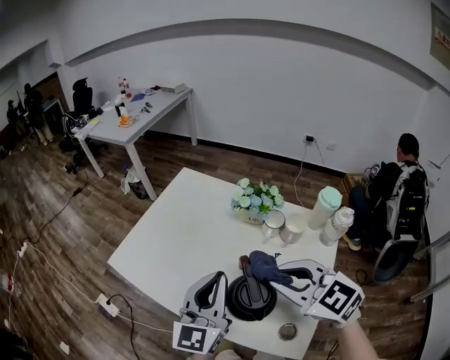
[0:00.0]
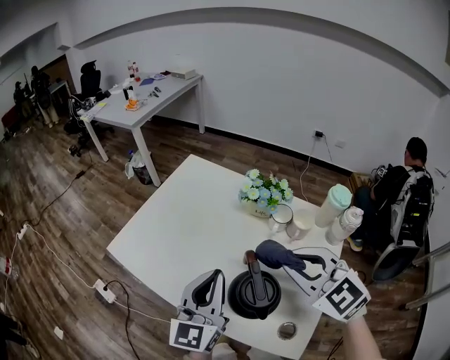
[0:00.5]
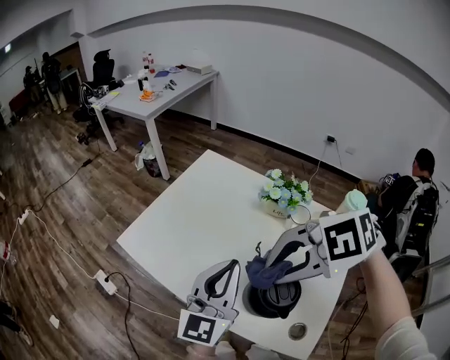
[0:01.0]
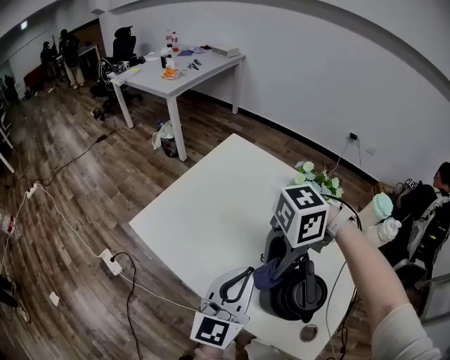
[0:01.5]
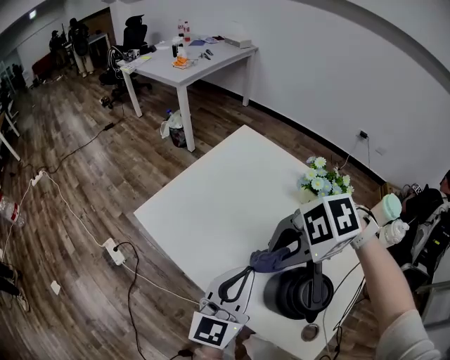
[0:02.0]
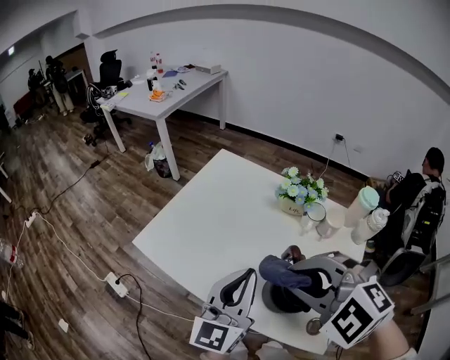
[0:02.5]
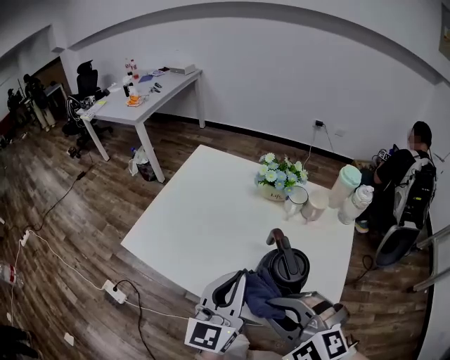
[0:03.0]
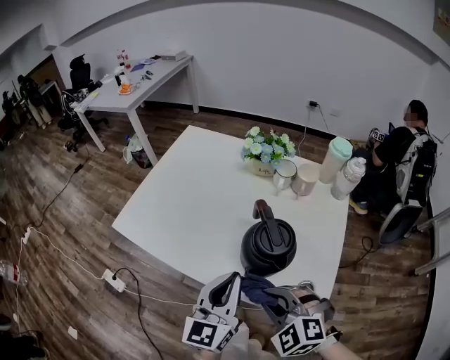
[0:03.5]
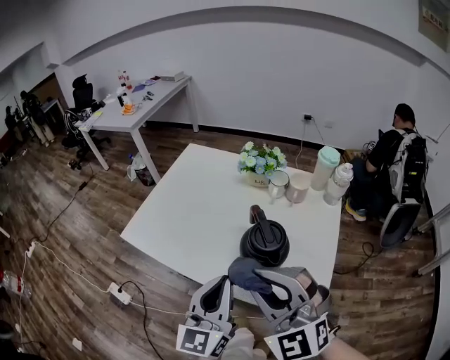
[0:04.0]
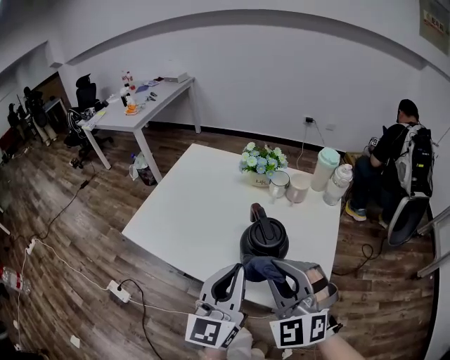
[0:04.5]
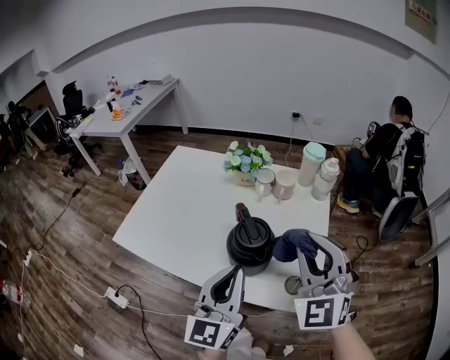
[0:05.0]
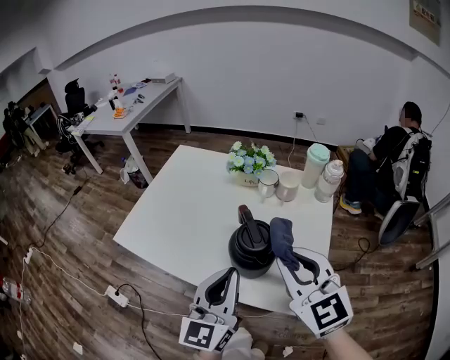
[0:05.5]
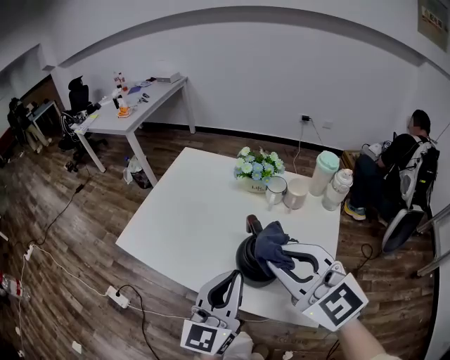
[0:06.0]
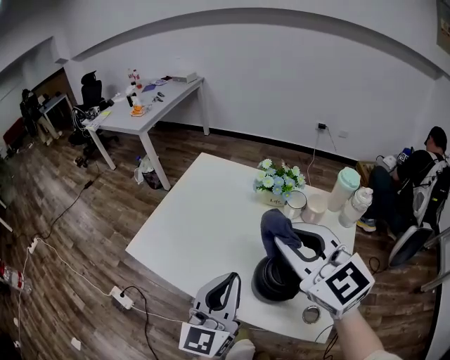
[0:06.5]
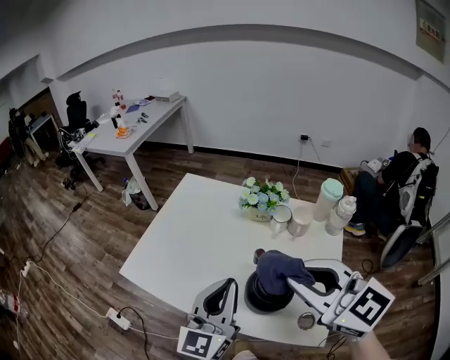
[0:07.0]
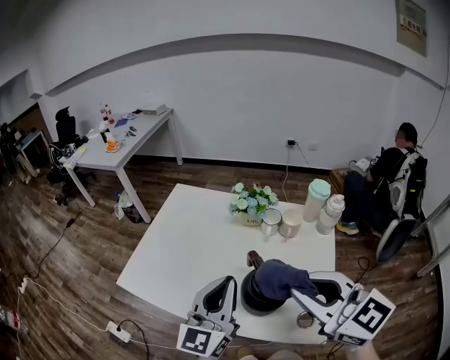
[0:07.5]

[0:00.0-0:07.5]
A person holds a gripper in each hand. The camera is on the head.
0.0 to 2.0 s: The right gripper changes place by some 15 cm, and points its fingers approximately 30 degrees further downward; the left gripper heads downward, covering some 10 cm.
2.0 to 4.0 s: The right gripper moves up and down over about 20 cm, changing direction 2 times, and angles its fingers upward, by about 50 degrees; the left gripper moves up and down over some 10 cm, changing direction 2 times.
4.0 to 5.5 s: The right gripper is displaced to the right by some 10 cm, and turns by about 30 degrees.
5.5 to 7.5 s: The right gripper moves upward, about 5 cm, and moves some 10 cm forward and comes back, while the left gripper goes some 10 cm forward.

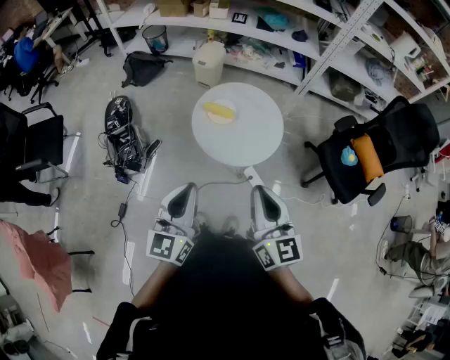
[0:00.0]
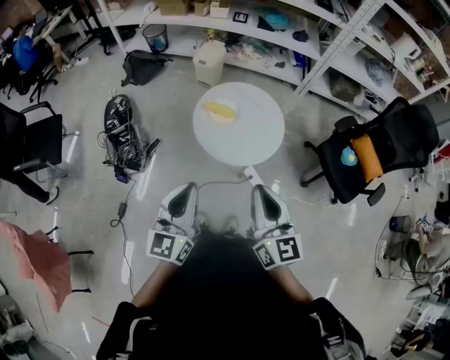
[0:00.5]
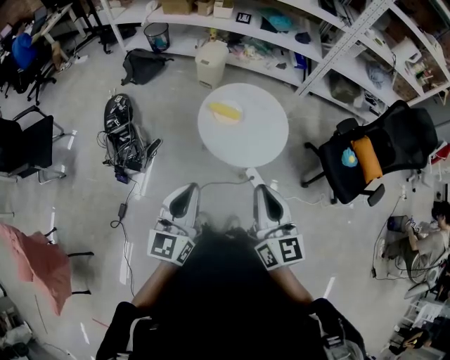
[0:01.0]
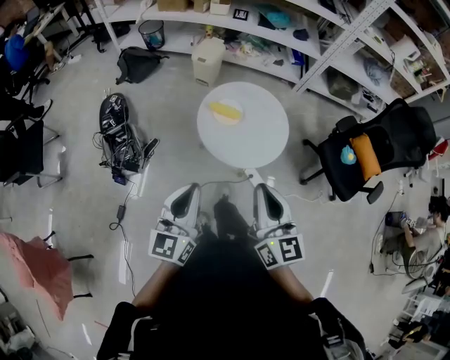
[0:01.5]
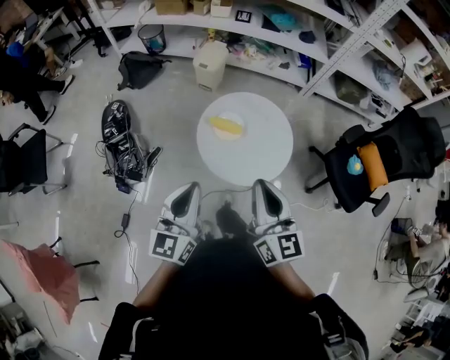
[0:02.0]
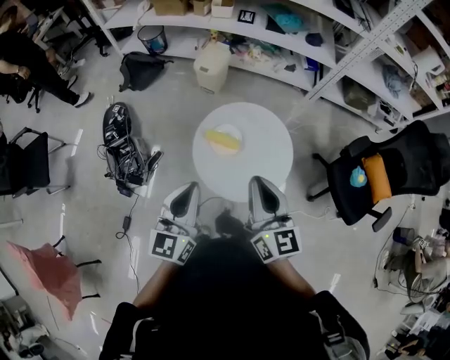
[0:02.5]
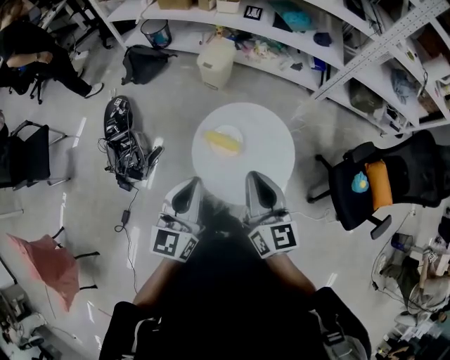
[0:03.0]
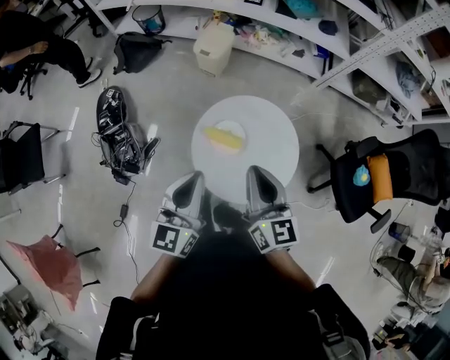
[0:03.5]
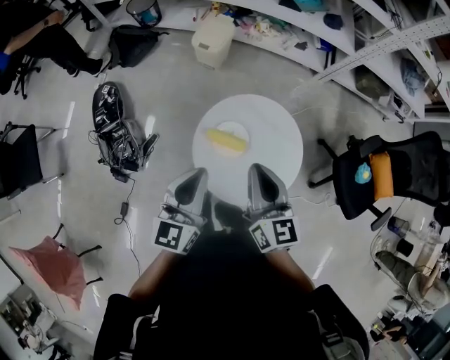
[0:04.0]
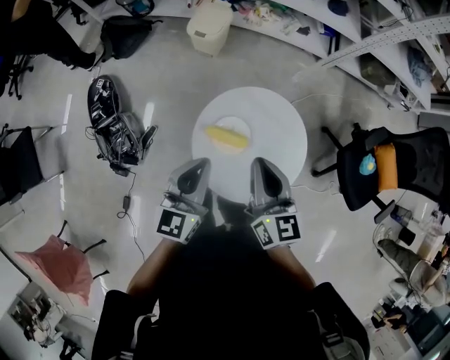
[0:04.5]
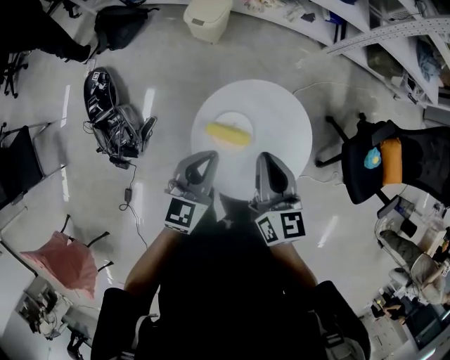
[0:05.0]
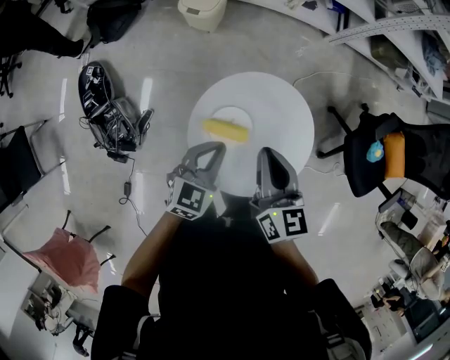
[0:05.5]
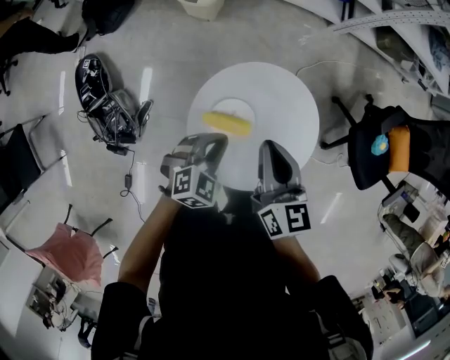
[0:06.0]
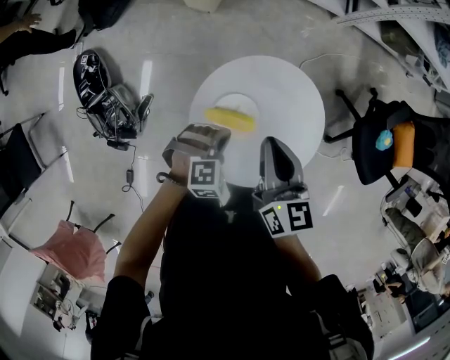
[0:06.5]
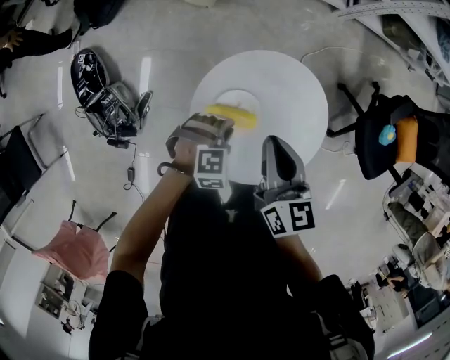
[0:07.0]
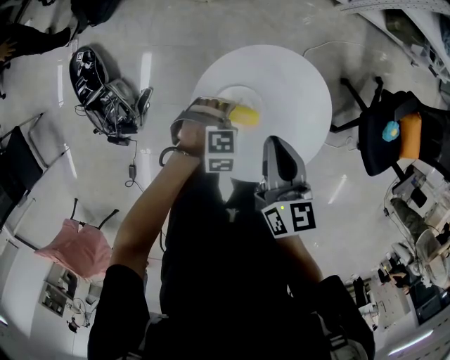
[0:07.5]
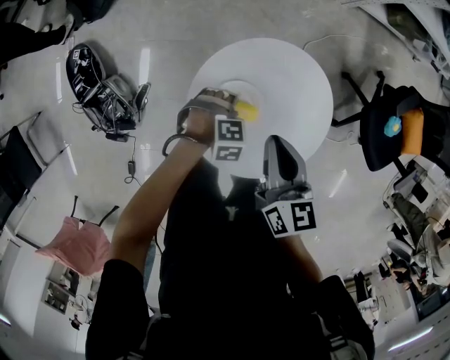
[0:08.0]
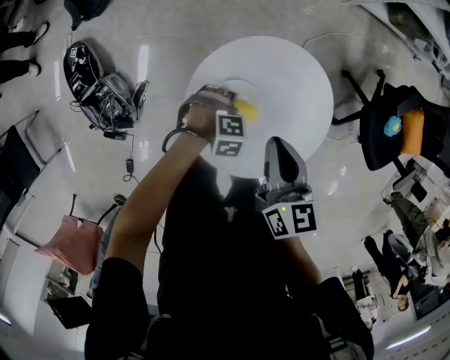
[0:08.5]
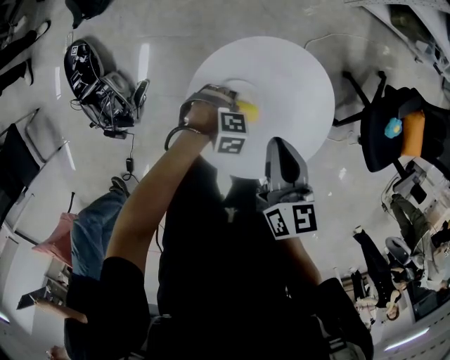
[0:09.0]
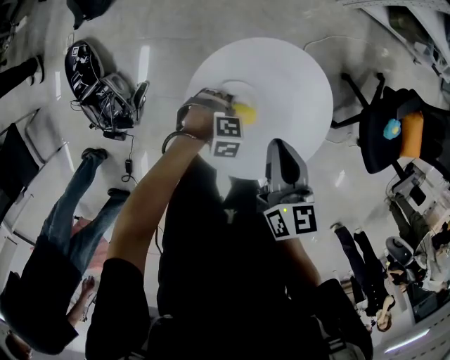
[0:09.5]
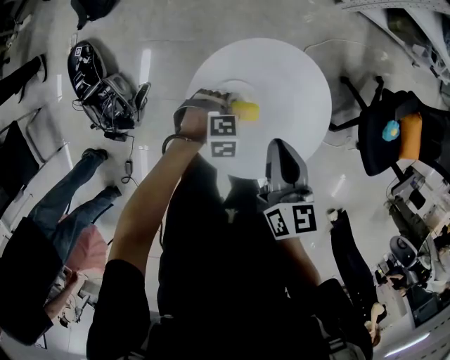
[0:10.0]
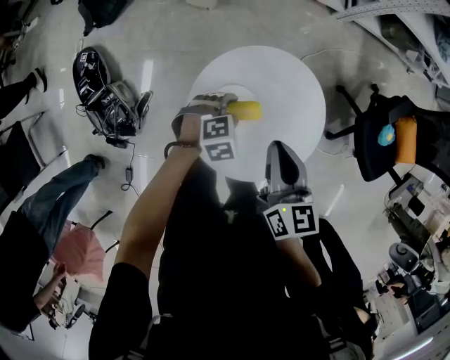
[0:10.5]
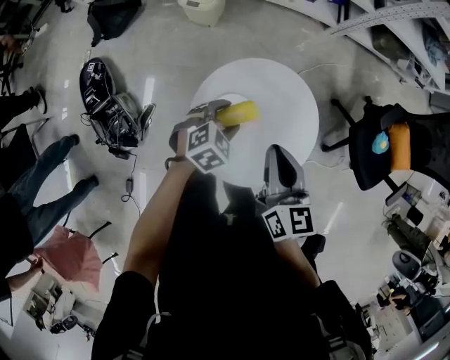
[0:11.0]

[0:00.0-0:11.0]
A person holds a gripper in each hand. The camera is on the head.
0.0 to 2.0 s: Both grippers move forward, about 15 cm.
2.0 to 3.5 s: Both grippers travel together forward, approximately 20 cm.
3.5 to 5.5 s: The left gripper travels downward and forward by roughly 20 cm, and turns by roughly 40 degrees. The right gripper is displaced forward and downward by approximately 15 cm.
5.5 to 7.5 s: The right gripper travels downward by roughly 5 cm. Meanwhile the left gripper moves downward, roughly 15 cm, angles its fingers downward, by roughly 40 degrees, and opens.
7.5 to 9.0 s: The left gripper moves downward, approximately 5 cm.
9.0 to 11.0 s: The left gripper shifts some 15 cm upward, and rotates approximately 50 degrees; the right gripper goes about 5 cm upward.

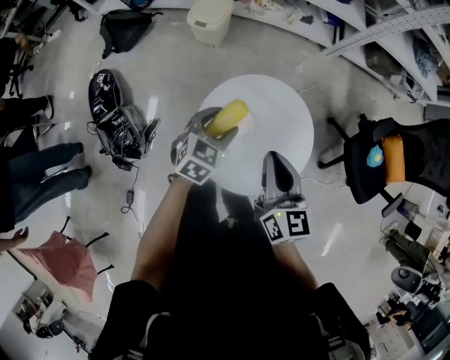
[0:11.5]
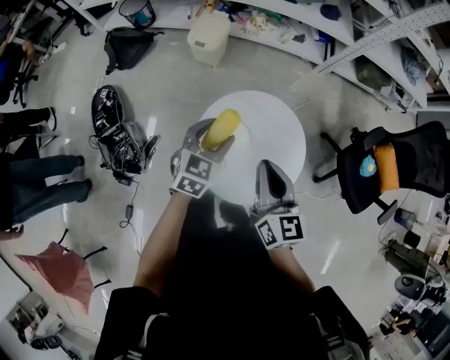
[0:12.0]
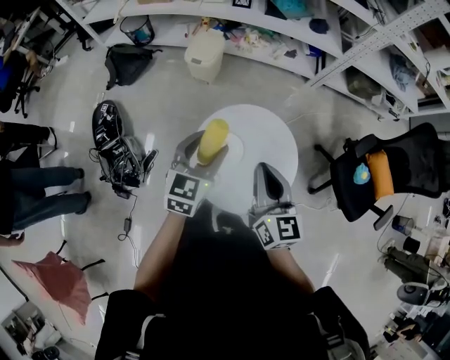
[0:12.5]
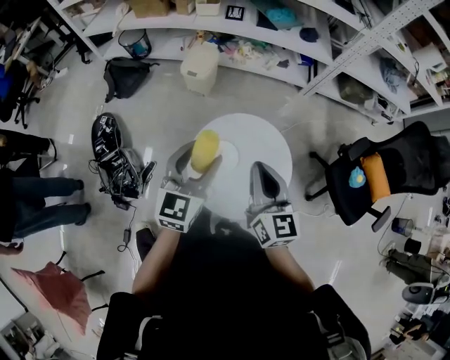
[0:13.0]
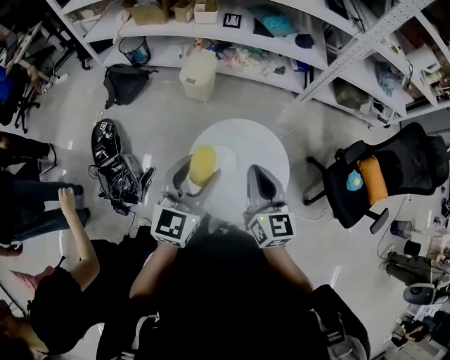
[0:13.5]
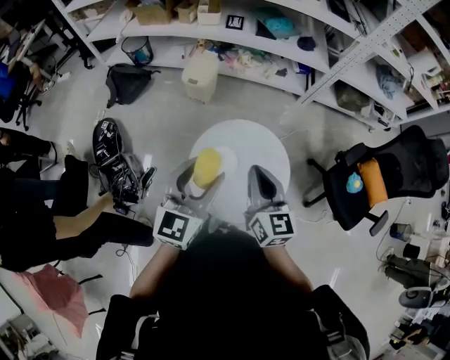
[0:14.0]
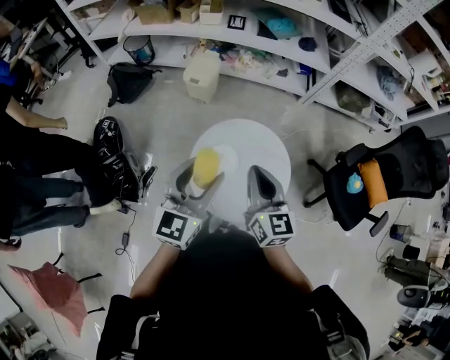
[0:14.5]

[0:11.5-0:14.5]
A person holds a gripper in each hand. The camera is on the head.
11.5 to 13.0 s: The left gripper is displaced upward by about 20 cm, and turns by about 30 degrees; the right gripper travels upward by about 10 cm.
13.0 to 14.5 s: The left gripper shifts by about 5 cm.

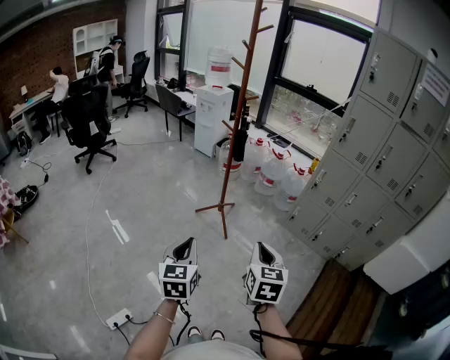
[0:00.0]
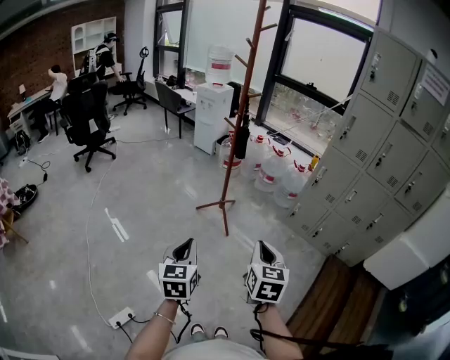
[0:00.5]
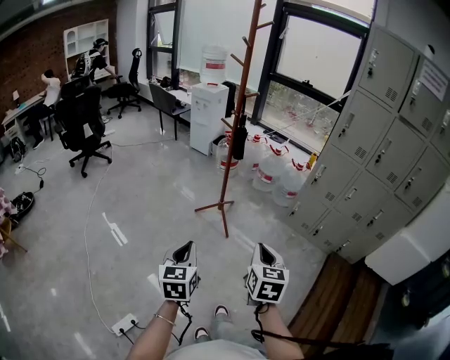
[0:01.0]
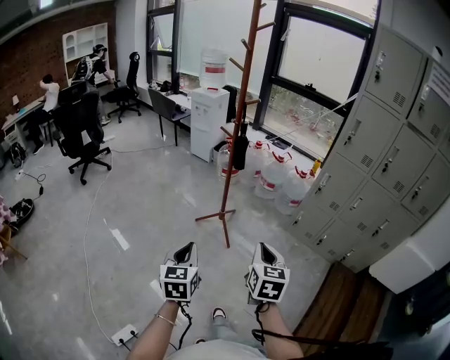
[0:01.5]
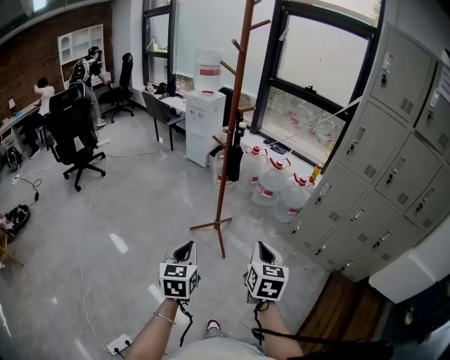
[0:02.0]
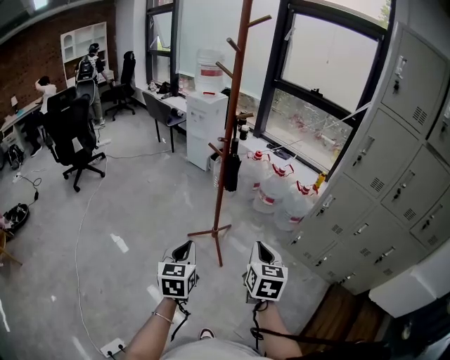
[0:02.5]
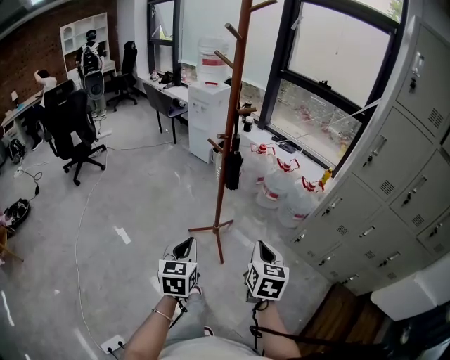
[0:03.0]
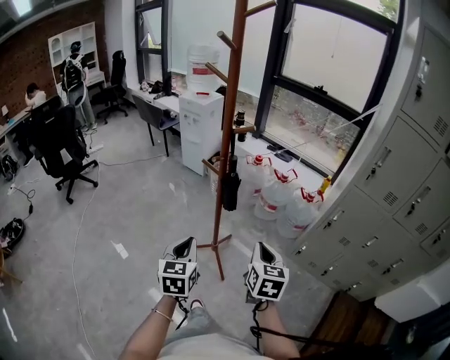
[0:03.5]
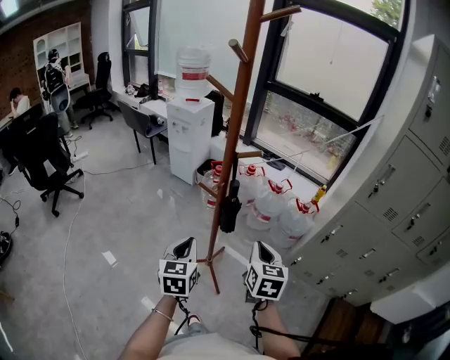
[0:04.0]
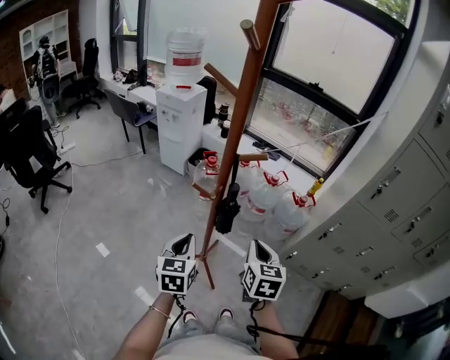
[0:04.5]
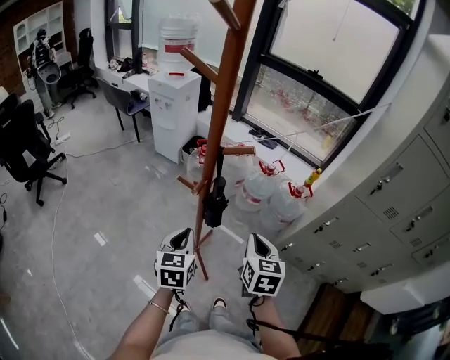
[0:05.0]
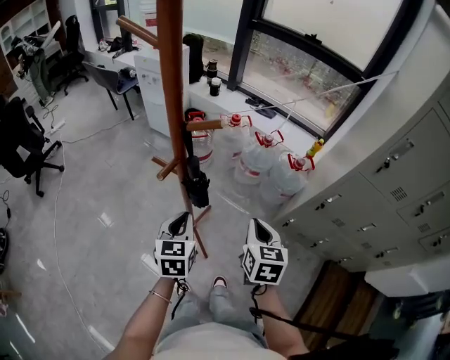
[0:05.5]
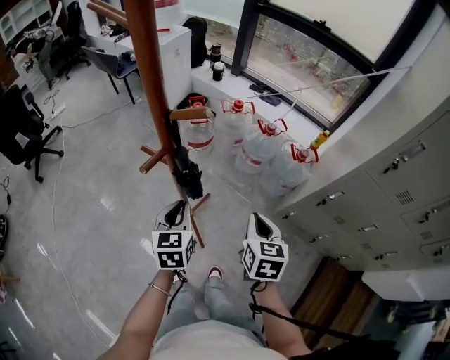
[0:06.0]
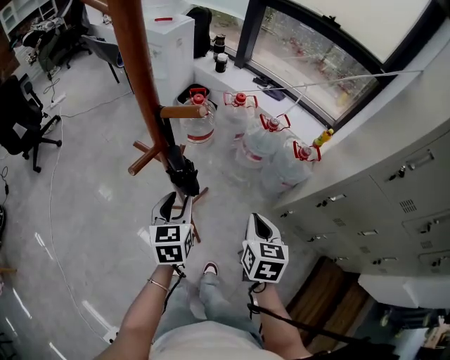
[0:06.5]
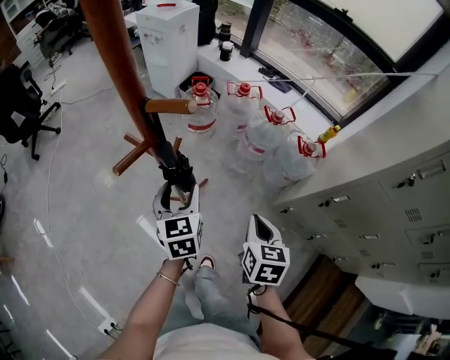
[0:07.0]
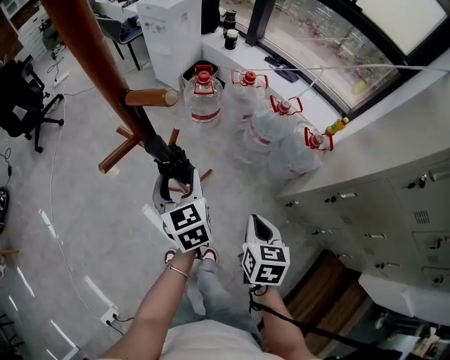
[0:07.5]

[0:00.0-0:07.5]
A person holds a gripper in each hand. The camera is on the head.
0.0 to 2.0 s: Both grippers move forward, roughly 20 cm.
2.0 to 4.0 s: Both grippers move forward, some 35 cm.
4.0 to 5.5 s: The two grippers go about 15 cm forward, to the right and downward.
5.5 to 7.5 s: The left gripper heads forward, covering about 10 cm, rotates roughly 30 degrees, and opens. The right gripper goes some 10 cm downward and to the right.
